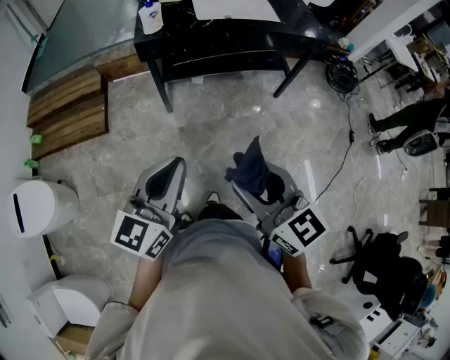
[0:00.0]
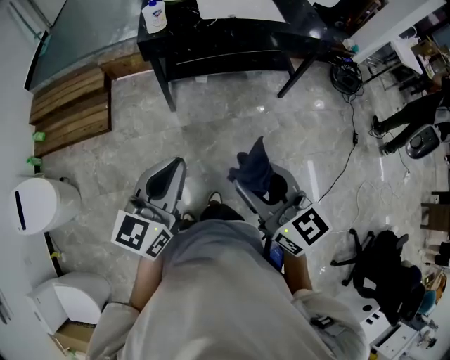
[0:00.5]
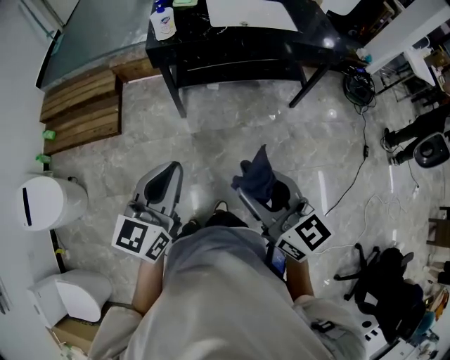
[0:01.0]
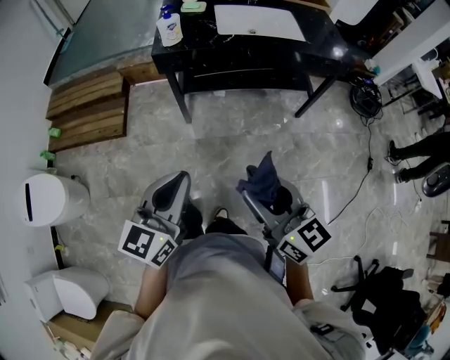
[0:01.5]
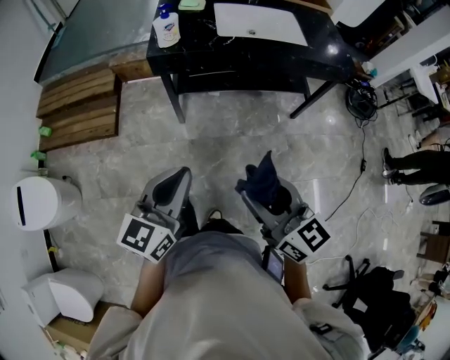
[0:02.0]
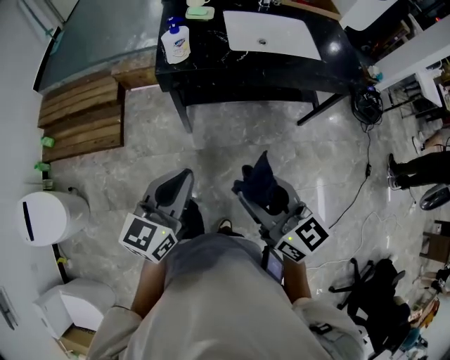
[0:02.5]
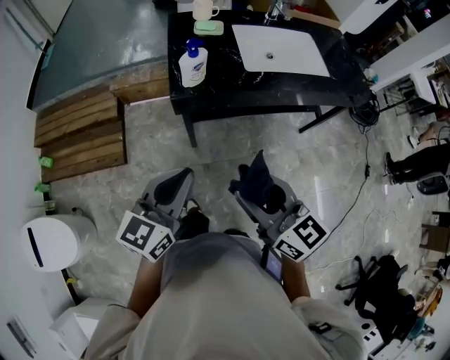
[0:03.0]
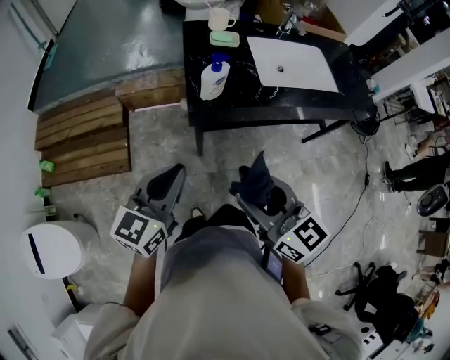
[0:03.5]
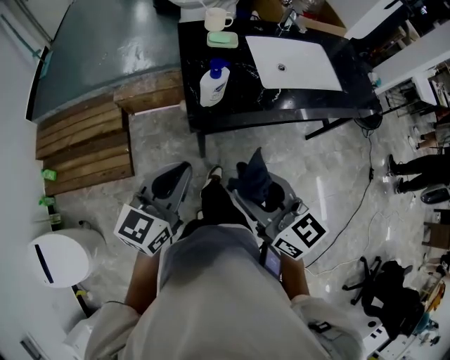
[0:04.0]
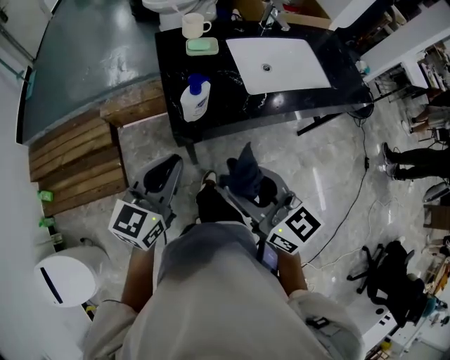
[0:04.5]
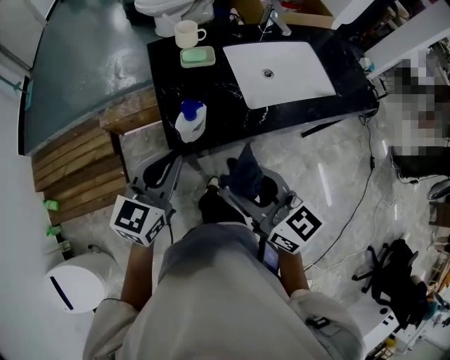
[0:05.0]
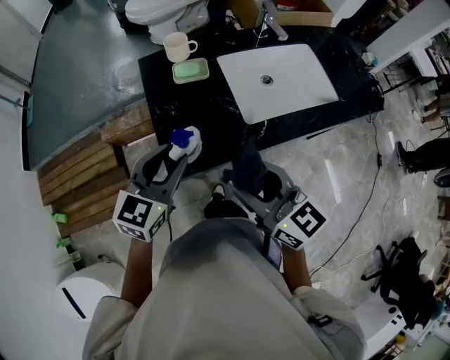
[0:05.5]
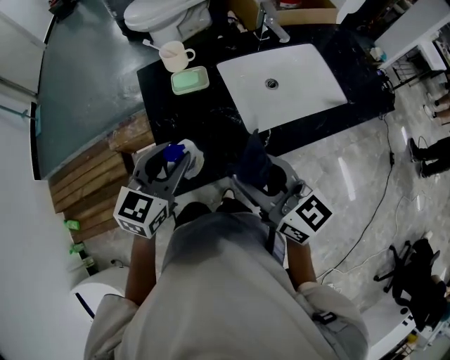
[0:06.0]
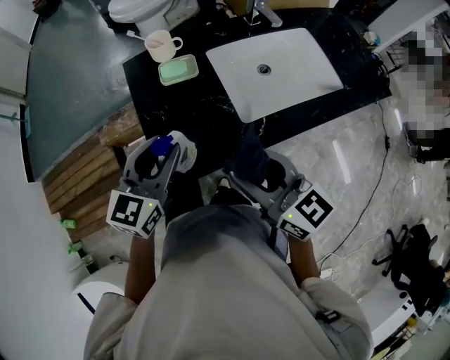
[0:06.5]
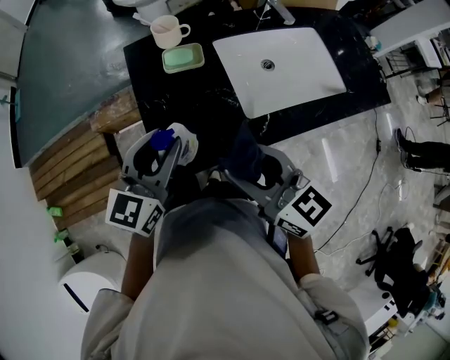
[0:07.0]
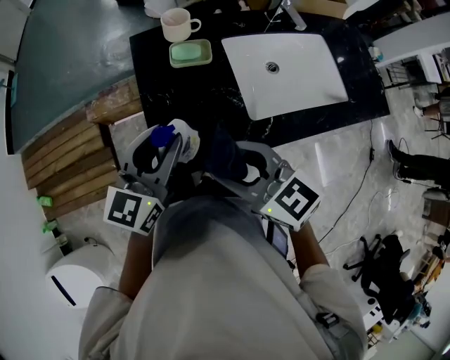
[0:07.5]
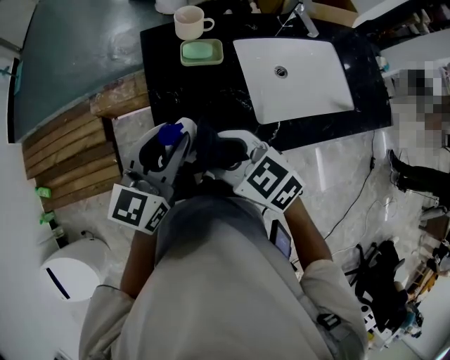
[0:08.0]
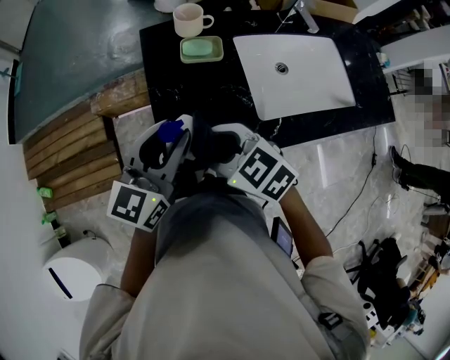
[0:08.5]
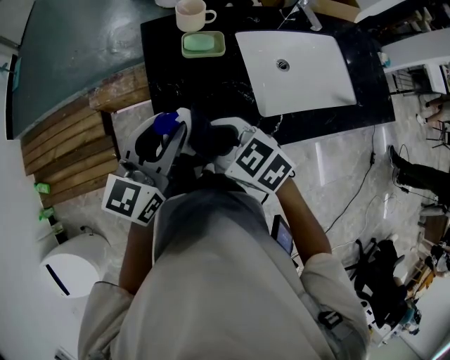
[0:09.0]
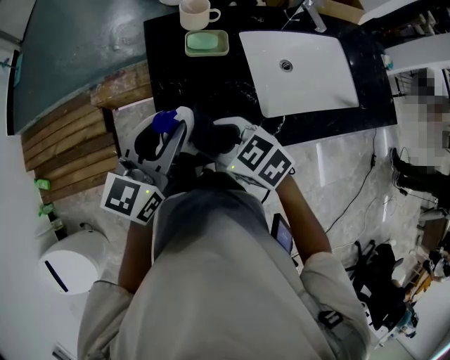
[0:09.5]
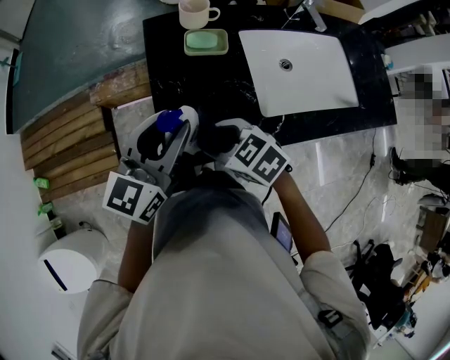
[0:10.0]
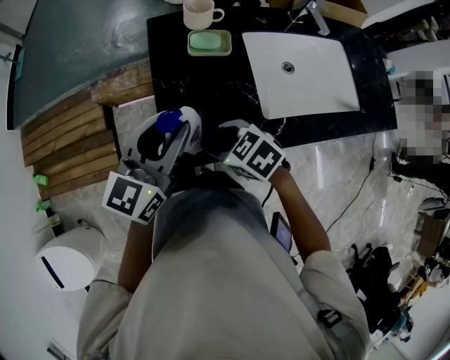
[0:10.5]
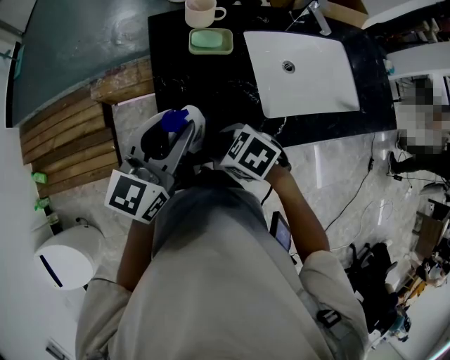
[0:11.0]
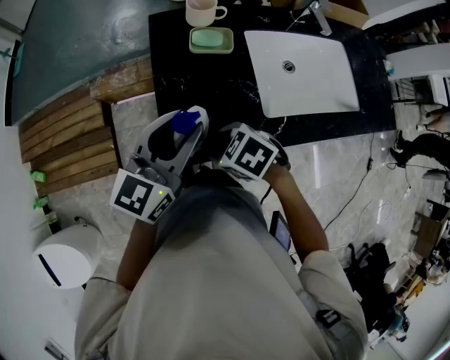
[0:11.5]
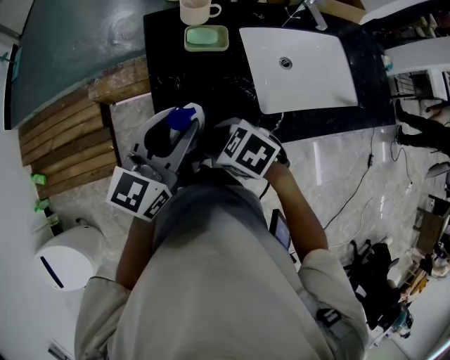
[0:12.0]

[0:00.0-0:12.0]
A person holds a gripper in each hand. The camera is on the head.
0:00.0 to 0:02.0: The two grippers go roughly 10 cm forward.
0:02.0 to 0:04.0: Both grippers travel together forward and to the left, approximately 35 cm.
0:04.0 to 0:06.0: Both grippers travel together forward, roughly 25 cm. The left gripper opens its fingers.
0:06.0 to 0:08.0: The right gripper goes about 15 cm to the left and downward, and angles its fingers downward, by roughly 30 degrees.
0:08.0 to 0:10.0: The right gripper is displaced downward by some 5 cm.
0:10.0 to 0:12.0: The grippers move only a little.

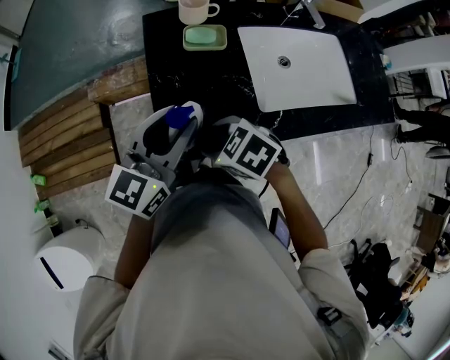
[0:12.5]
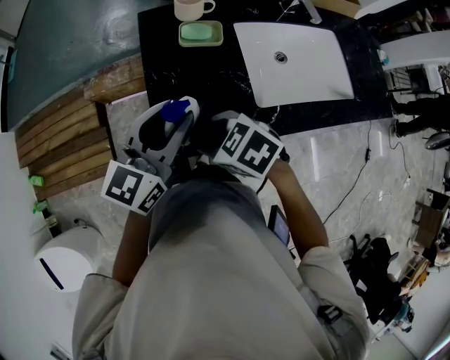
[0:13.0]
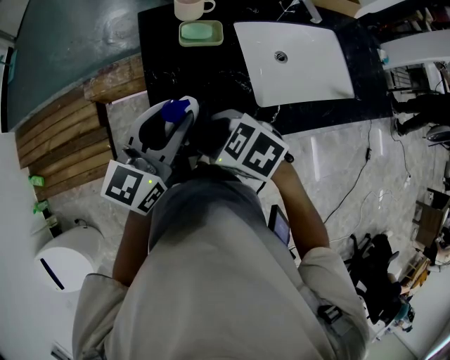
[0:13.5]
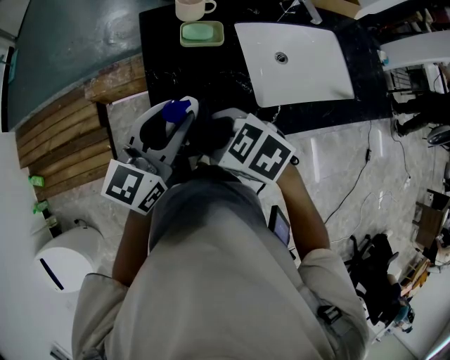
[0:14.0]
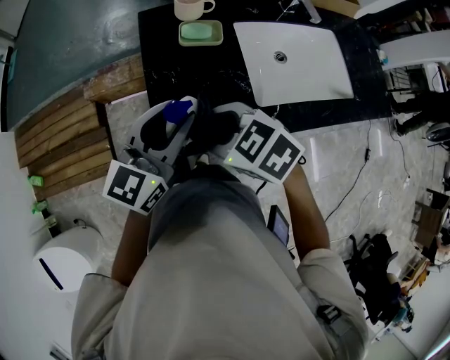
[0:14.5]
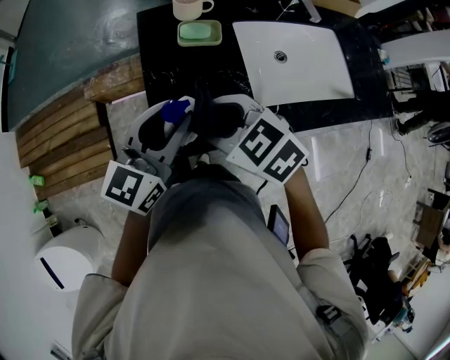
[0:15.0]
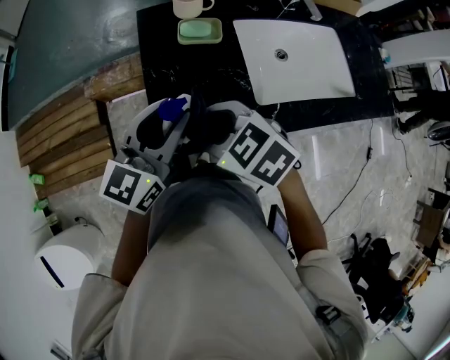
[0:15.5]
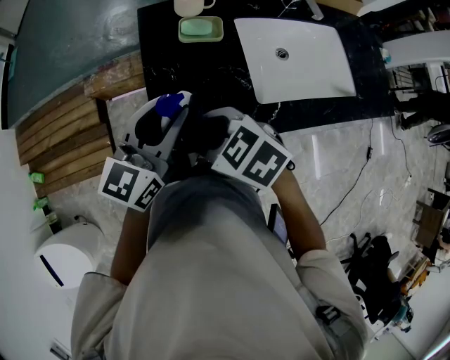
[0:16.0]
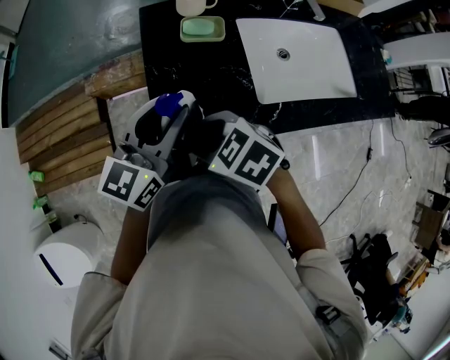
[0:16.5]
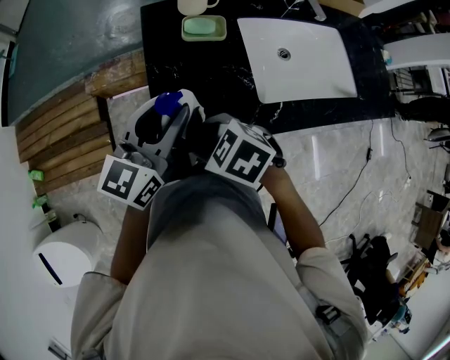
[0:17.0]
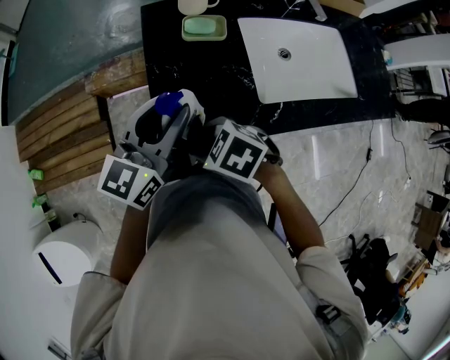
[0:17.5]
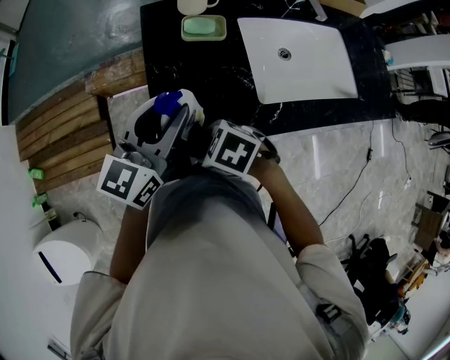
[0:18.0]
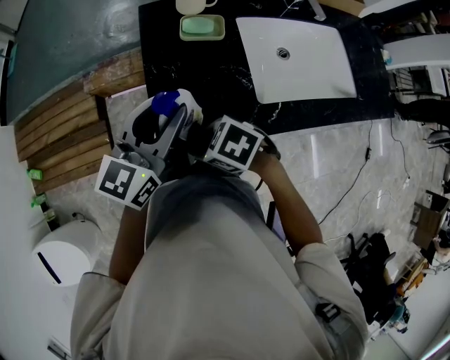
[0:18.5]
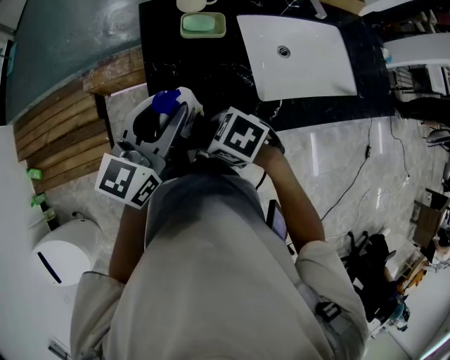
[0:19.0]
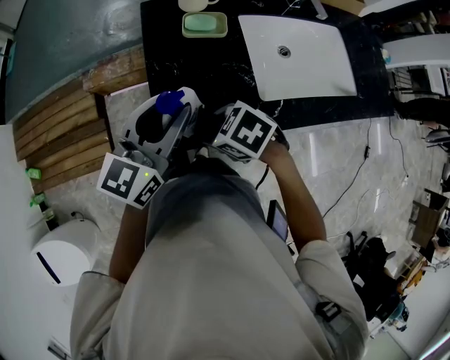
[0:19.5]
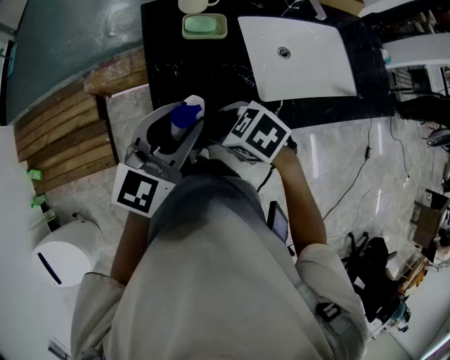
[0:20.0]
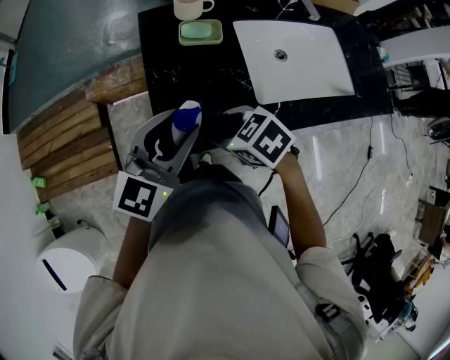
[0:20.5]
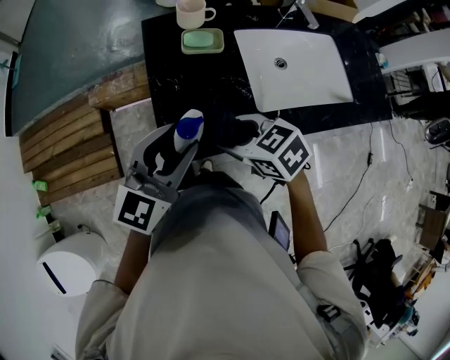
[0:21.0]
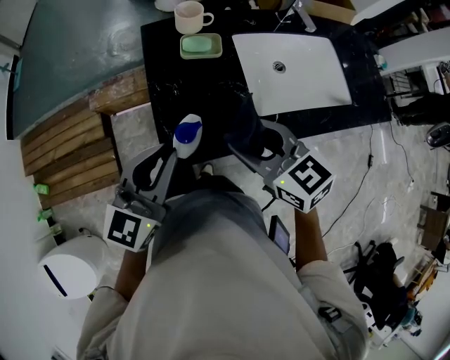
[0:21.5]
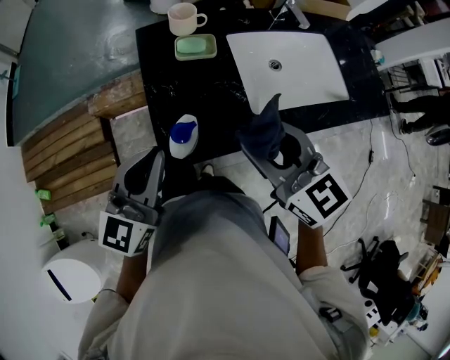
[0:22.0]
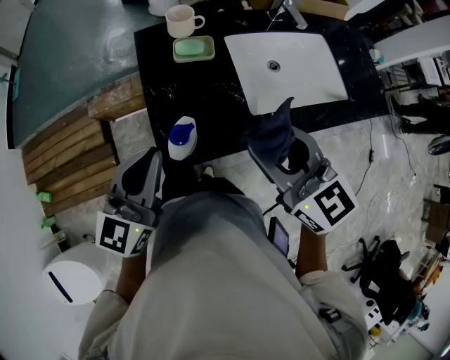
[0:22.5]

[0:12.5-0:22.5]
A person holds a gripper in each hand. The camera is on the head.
0:12.5 to 0:14.5: The right gripper goes some 5 cm upward.
0:14.5 to 0:16.5: There are only small adjustments of the grippers.
0:16.5 to 0:18.5: The right gripper travels downward by roughly 5 cm.
0:18.5 to 0:20.5: The right gripper changes place by about 5 cm.
0:20.5 to 0:22.5: The left gripper heads to the left, covering about 5 cm, and closes up. Meanwhile the right gripper is displaced upward by about 20 cm, and points its fingers some 40 degrees further upward.

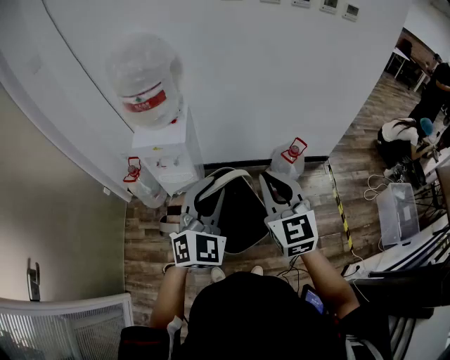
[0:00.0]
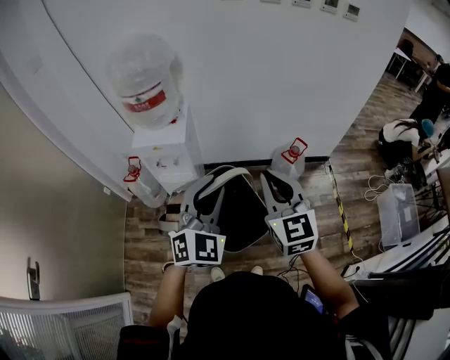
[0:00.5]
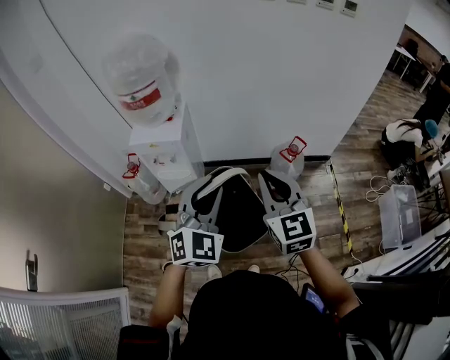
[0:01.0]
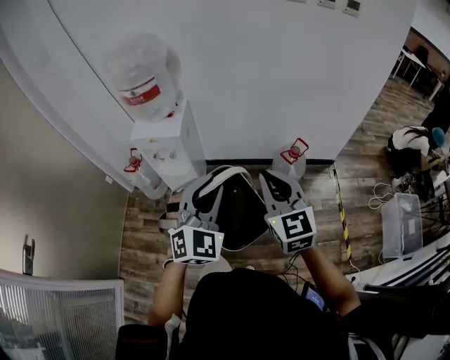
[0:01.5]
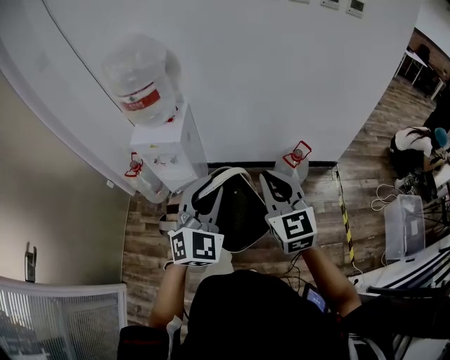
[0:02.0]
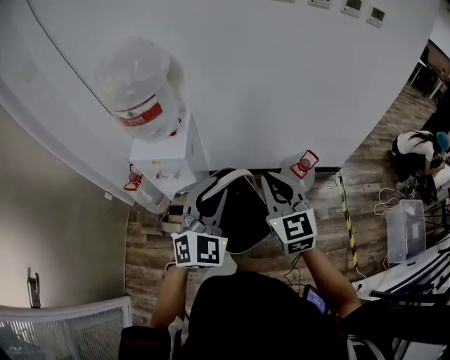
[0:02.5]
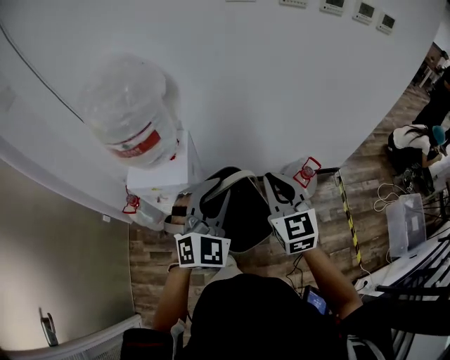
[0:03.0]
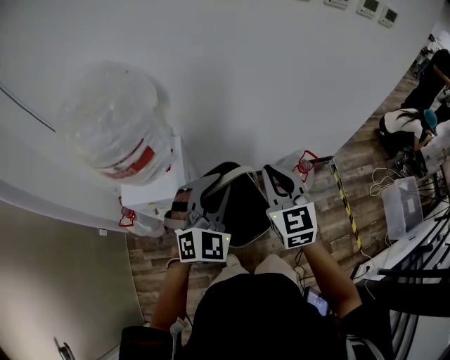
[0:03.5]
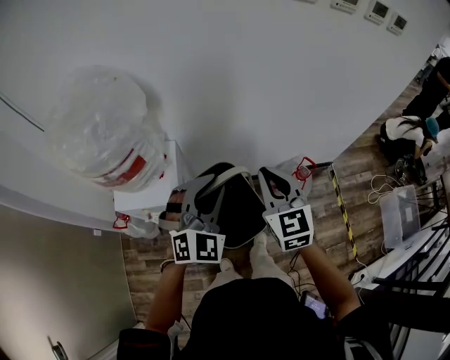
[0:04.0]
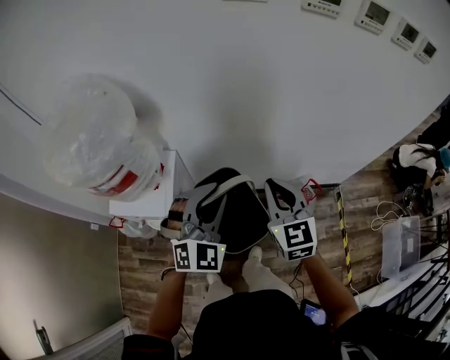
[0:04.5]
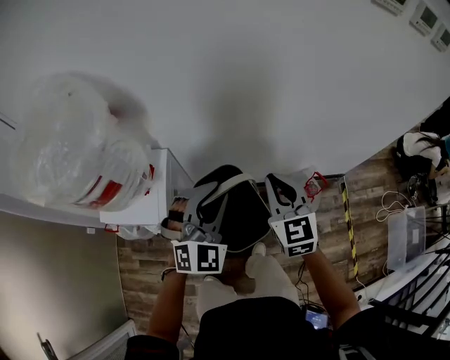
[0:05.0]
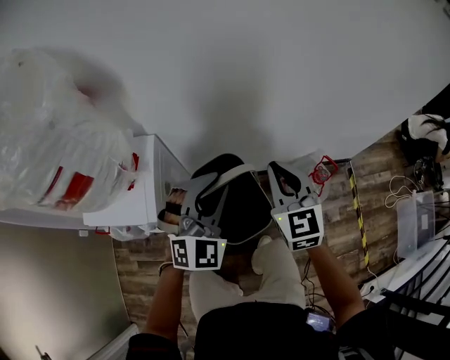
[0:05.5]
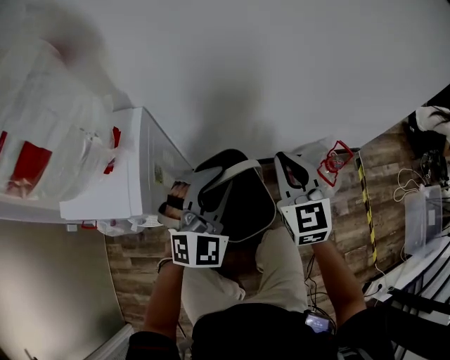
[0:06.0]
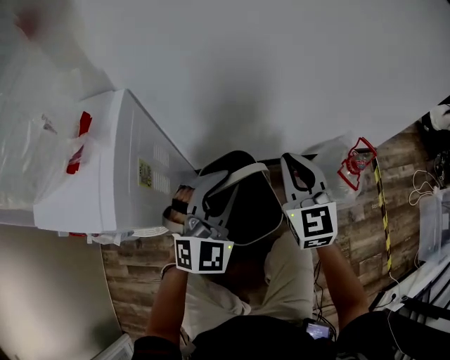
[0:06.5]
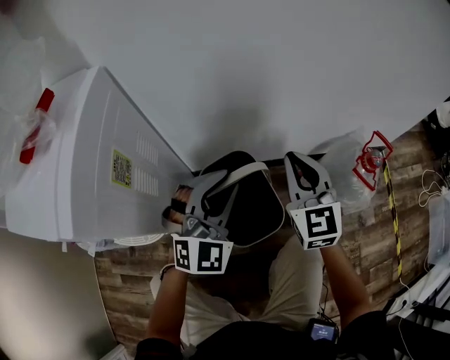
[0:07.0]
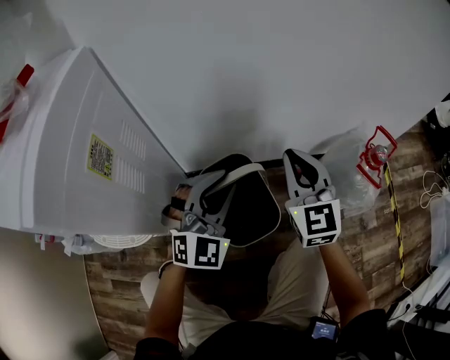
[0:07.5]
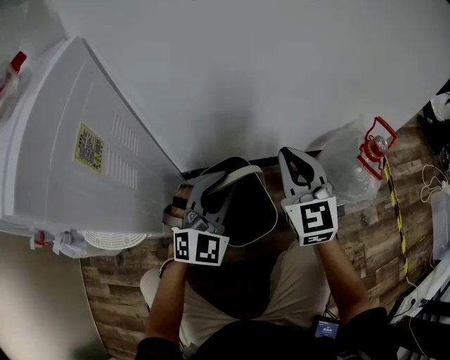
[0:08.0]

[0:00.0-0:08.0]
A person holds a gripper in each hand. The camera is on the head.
0:00.0 to 0:02.0: Both grippers travel together to the right, approximately 5 cm.
0:02.0 to 0:04.0: The two grippers go about 30 cm forward.
0:04.0 to 0:06.0: The right gripper moves downward and forward, approximately 30 cm, while the left gripper is displaced downward by about 25 cm.
0:06.0 to 0:08.0: The grippers both shift downward by some 30 cm.
